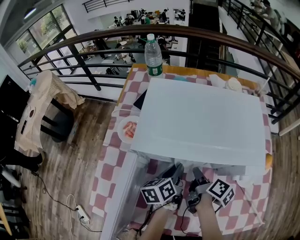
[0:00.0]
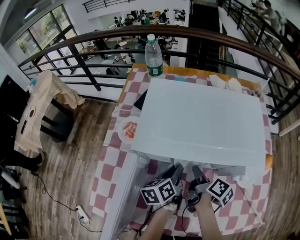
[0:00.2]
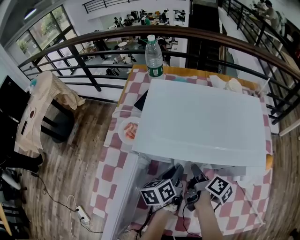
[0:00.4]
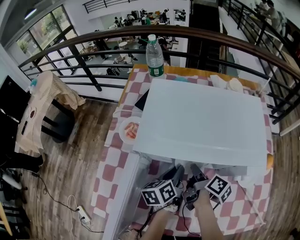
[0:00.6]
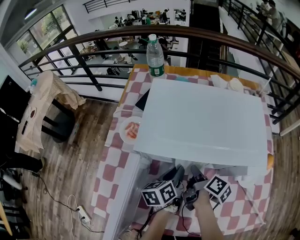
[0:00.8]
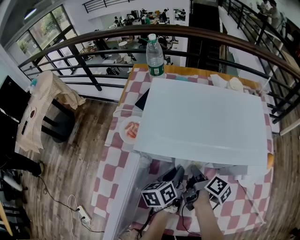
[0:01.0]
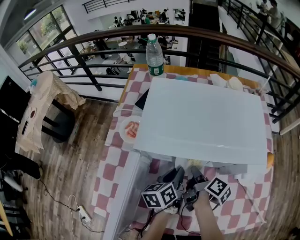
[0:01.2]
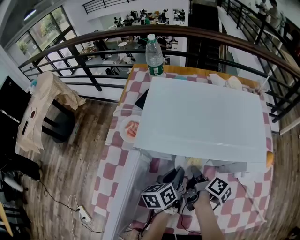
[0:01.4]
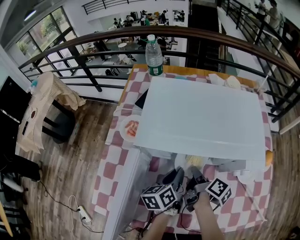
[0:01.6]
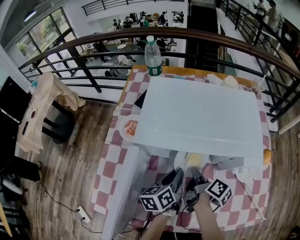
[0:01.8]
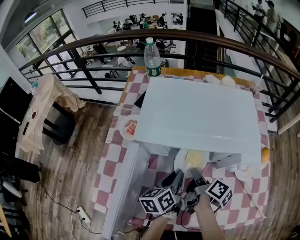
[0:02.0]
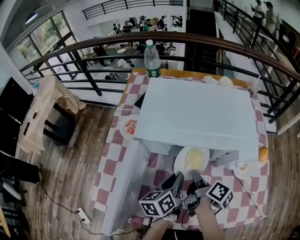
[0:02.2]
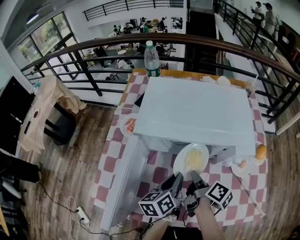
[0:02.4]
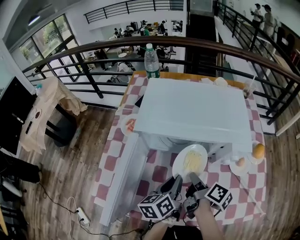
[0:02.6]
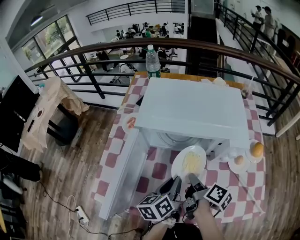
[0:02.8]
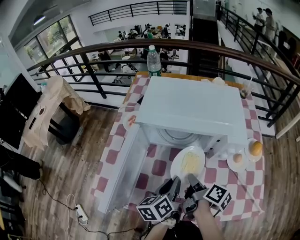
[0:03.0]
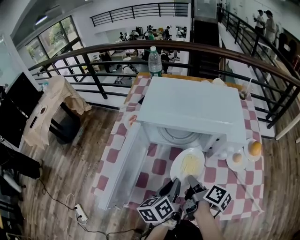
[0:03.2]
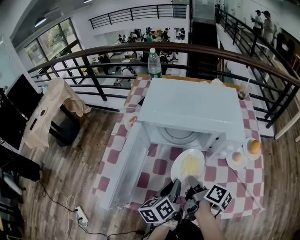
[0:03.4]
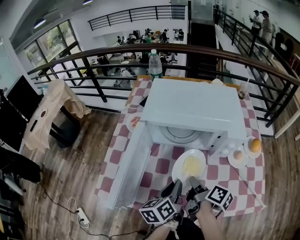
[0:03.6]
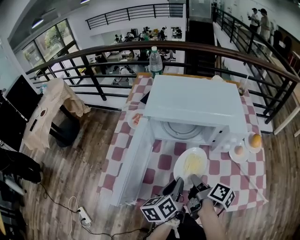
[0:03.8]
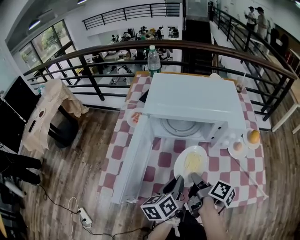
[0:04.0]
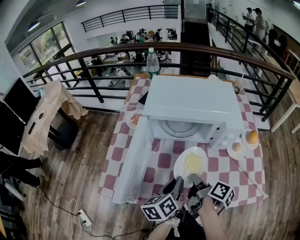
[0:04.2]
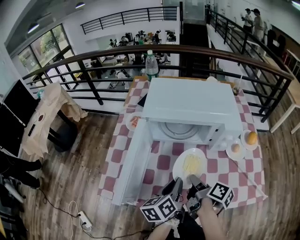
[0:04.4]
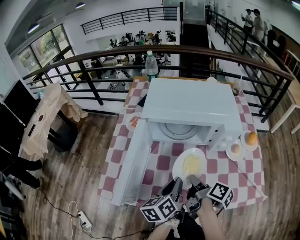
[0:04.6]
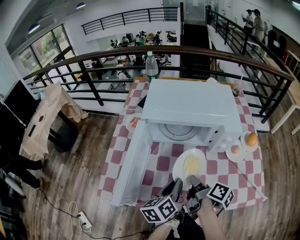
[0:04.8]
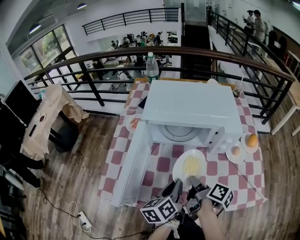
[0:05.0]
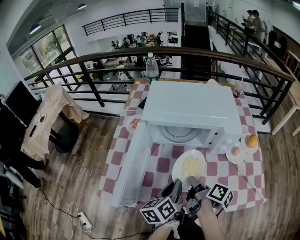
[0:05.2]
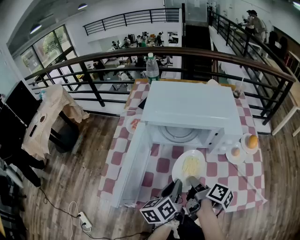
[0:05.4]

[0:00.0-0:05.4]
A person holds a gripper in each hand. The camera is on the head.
0:00.0 to 0:01.4: The right gripper opens, then closes once more.
0:01.4 to 0:02.8: The two grippers go about 10 cm backward and upward.
0:02.8 to 0:04.0: Both grippers move backward, some 5 cm.
0:04.0 to 0:05.4: Both grippers stay about where they are.

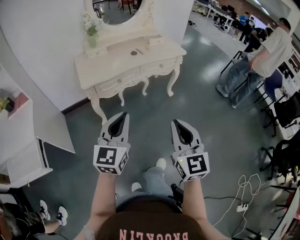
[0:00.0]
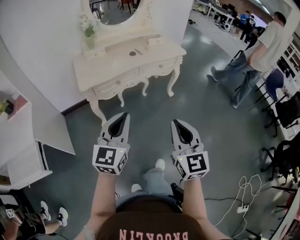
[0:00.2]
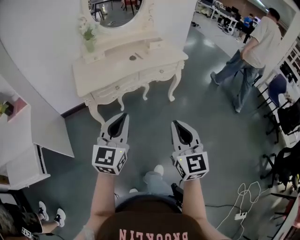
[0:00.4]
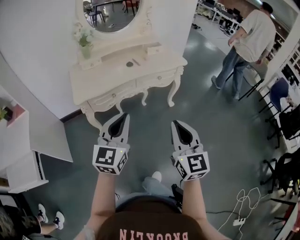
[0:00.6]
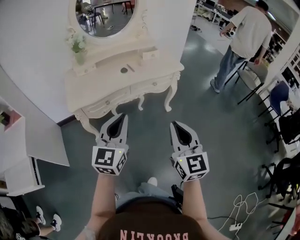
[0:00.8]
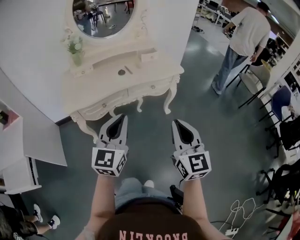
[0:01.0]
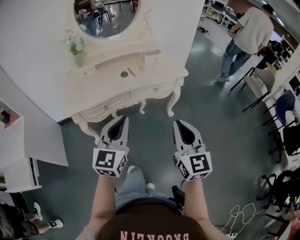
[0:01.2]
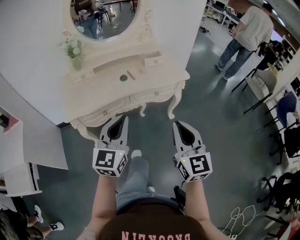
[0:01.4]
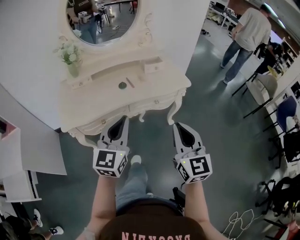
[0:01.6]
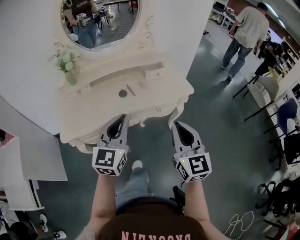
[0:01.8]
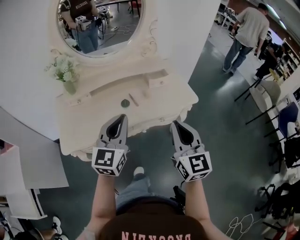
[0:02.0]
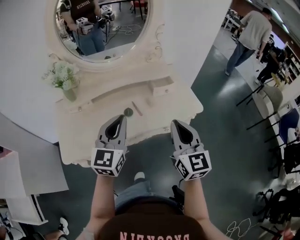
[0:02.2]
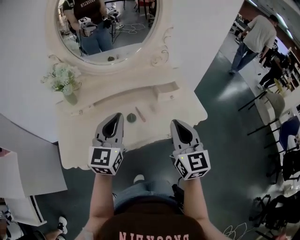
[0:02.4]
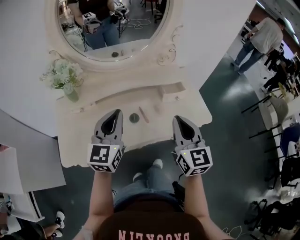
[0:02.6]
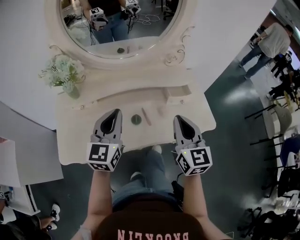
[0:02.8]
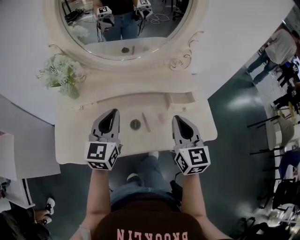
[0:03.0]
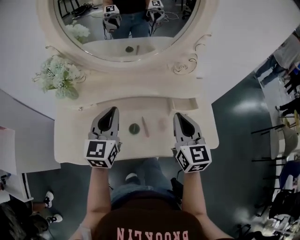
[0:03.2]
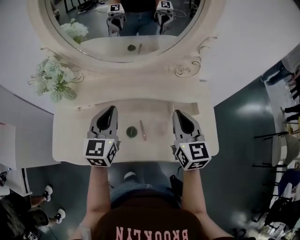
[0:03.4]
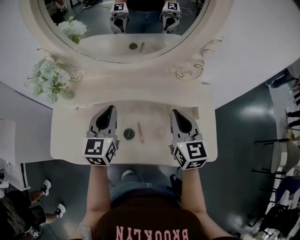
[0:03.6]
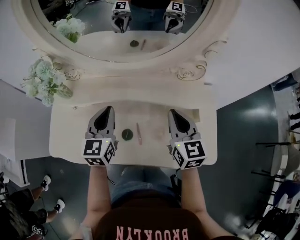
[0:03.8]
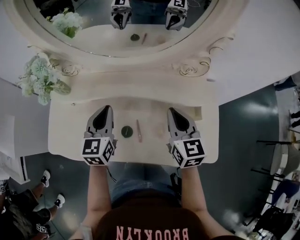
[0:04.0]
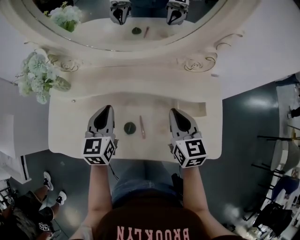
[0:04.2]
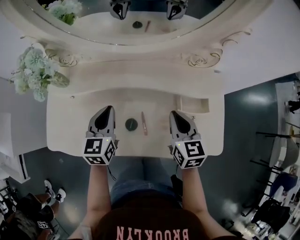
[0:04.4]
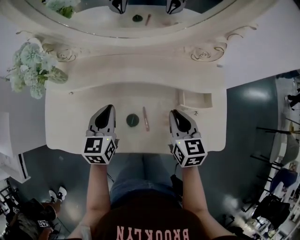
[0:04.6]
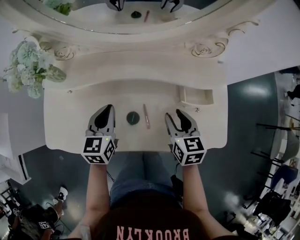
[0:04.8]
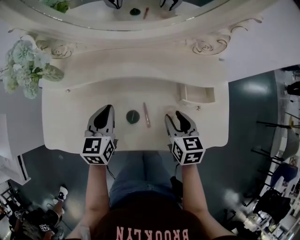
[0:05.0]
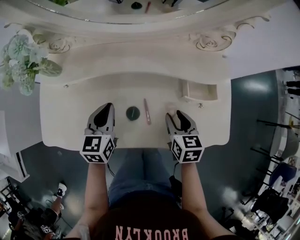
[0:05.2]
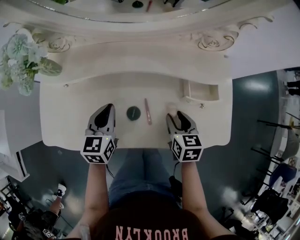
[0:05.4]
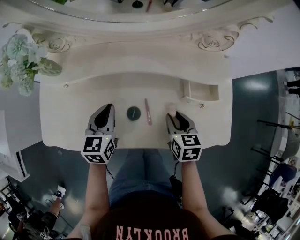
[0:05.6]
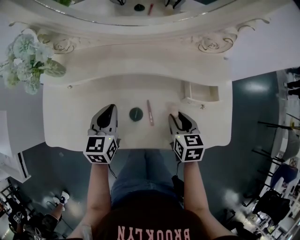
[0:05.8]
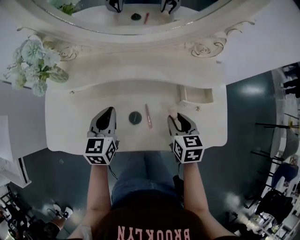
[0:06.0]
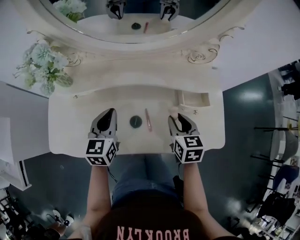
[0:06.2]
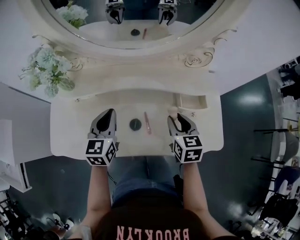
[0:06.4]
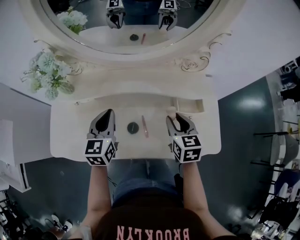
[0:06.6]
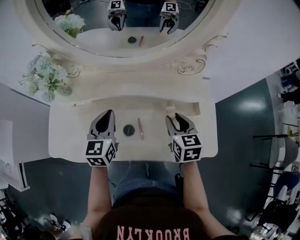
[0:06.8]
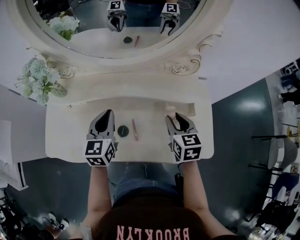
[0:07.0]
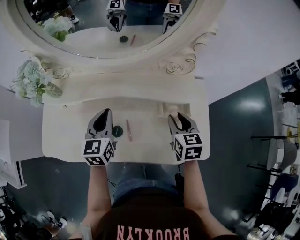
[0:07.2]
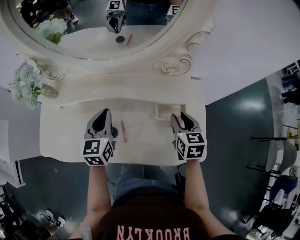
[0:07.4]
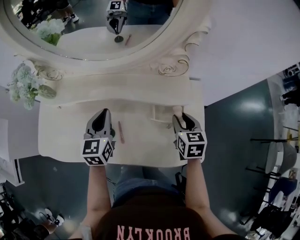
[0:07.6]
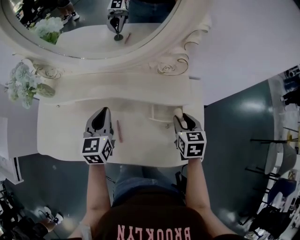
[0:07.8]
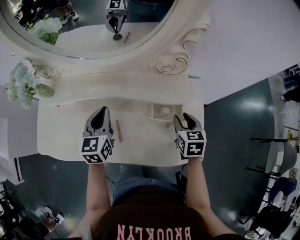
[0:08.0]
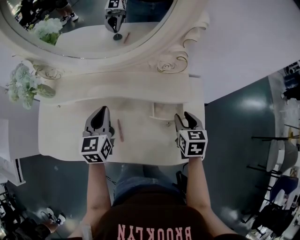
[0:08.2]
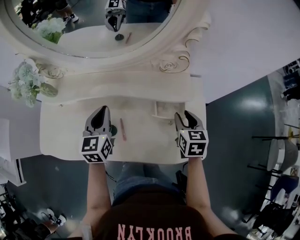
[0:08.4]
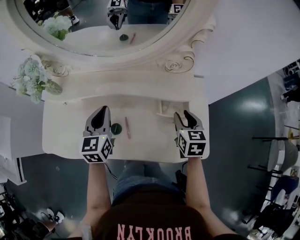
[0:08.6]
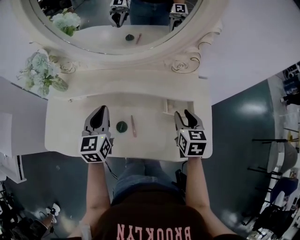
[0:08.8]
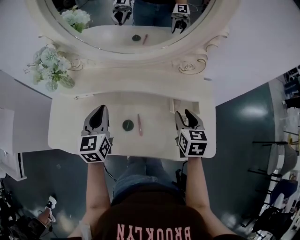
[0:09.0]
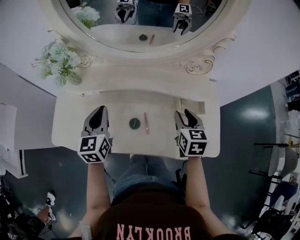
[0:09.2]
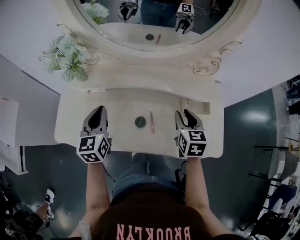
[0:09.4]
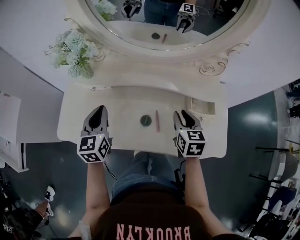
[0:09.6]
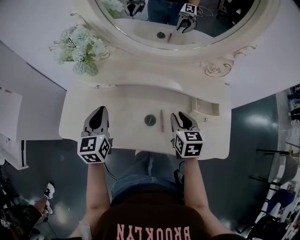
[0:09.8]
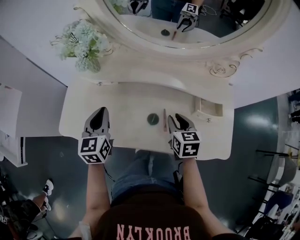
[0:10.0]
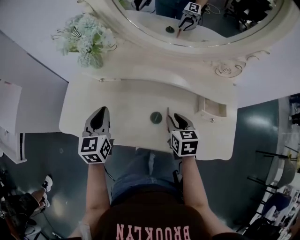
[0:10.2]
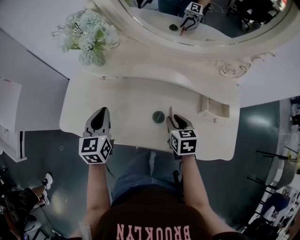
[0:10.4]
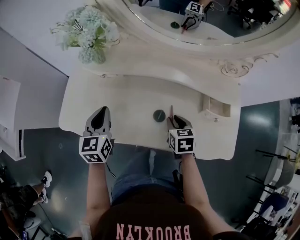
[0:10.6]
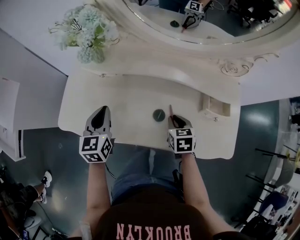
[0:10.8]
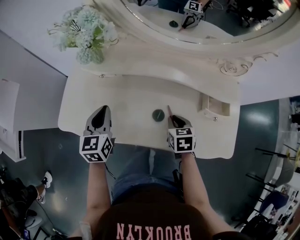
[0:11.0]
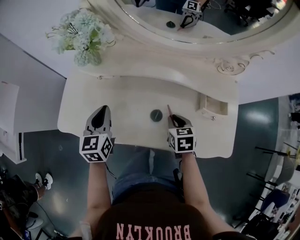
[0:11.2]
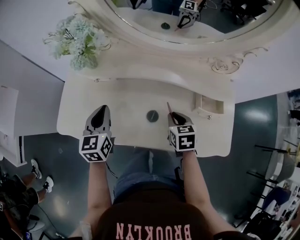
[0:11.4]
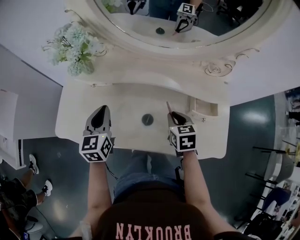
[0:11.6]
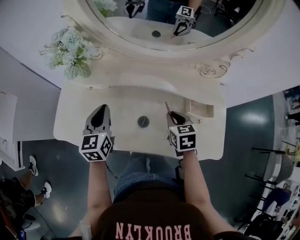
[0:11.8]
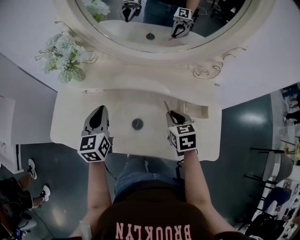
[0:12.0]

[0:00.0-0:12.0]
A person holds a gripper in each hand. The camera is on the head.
0:00.0 to 0:01.6: Both grippers move forward, some 35 cm.
0:01.6 to 0:03.0: The two grippers go some 40 cm forward.
0:03.0 to 0:04.4: Both grippers travel together downward and forward, some 15 cm. The left gripper turns by roughly 20 degrees; the right gripper swivels some 20 degrees.
0:04.4 to 0:06.0: The right gripper heads downward, covering approximately 5 cm, and opens.
0:06.0 to 0:07.6: The right gripper is displaced to the right and forward by some 15 cm. The left gripper shifts some 10 cm to the right and upward.
0:07.6 to 0:09.0: Both grippers travel together to the left, about 10 cm.
0:09.0 to 0:10.4: Both grippers travel together to the left and downward, approximately 20 cm.
0:10.4 to 0:12.0: The left gripper travels to the right by some 10 cm; the right gripper is displaced to the right and upward by some 10 cm.

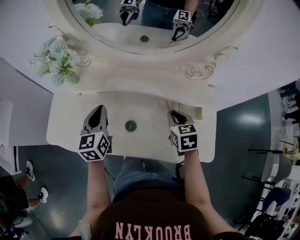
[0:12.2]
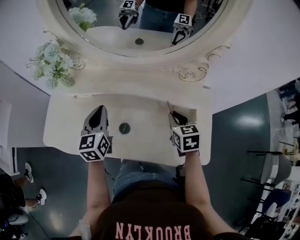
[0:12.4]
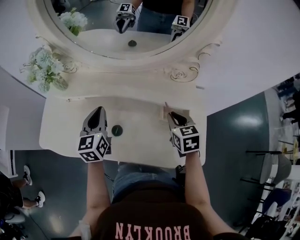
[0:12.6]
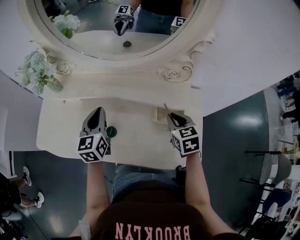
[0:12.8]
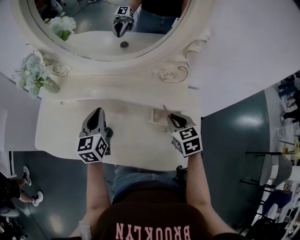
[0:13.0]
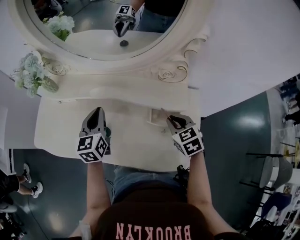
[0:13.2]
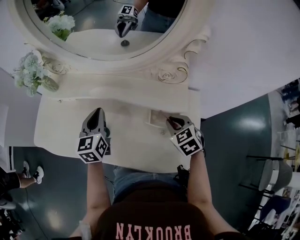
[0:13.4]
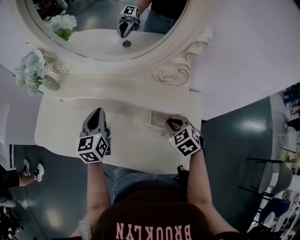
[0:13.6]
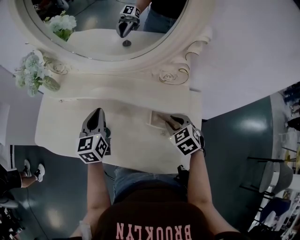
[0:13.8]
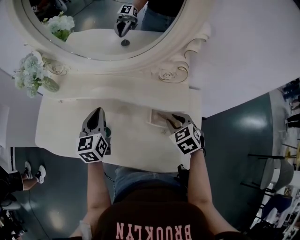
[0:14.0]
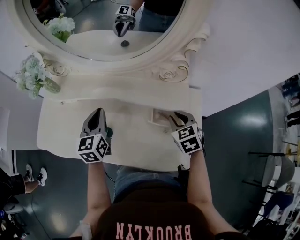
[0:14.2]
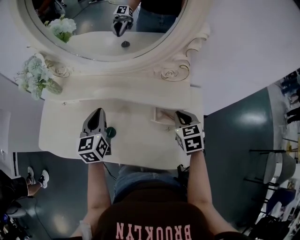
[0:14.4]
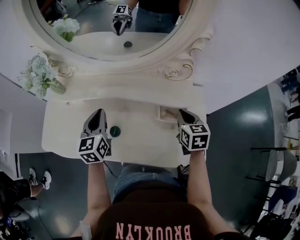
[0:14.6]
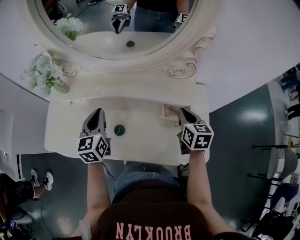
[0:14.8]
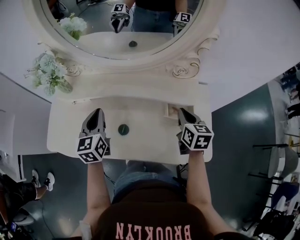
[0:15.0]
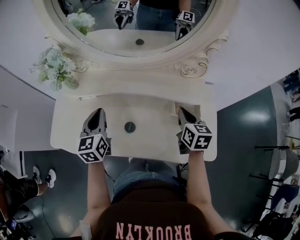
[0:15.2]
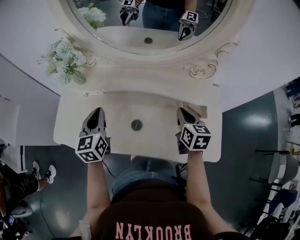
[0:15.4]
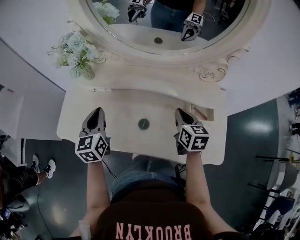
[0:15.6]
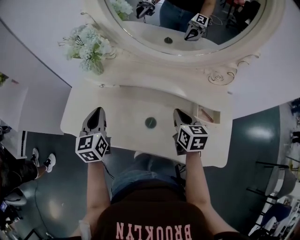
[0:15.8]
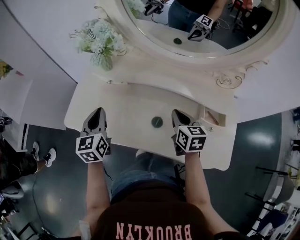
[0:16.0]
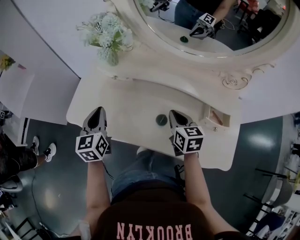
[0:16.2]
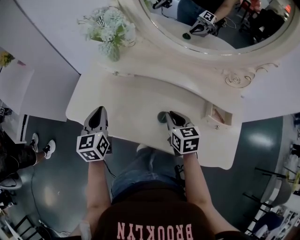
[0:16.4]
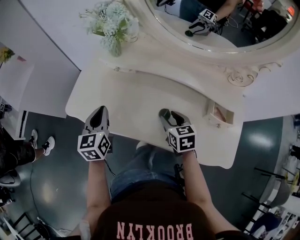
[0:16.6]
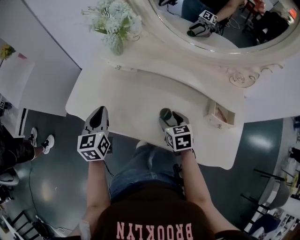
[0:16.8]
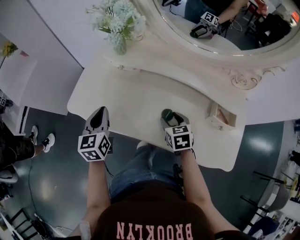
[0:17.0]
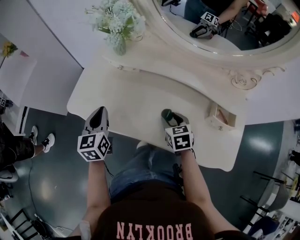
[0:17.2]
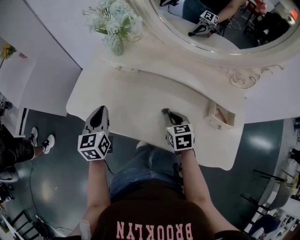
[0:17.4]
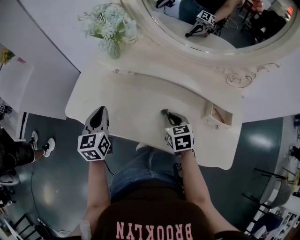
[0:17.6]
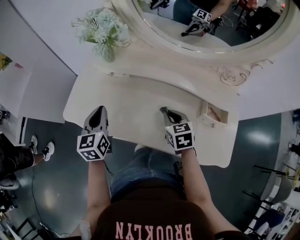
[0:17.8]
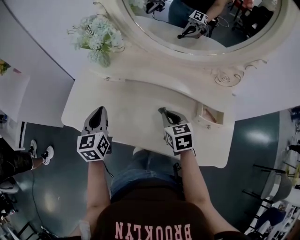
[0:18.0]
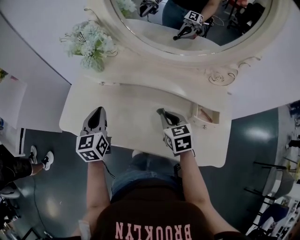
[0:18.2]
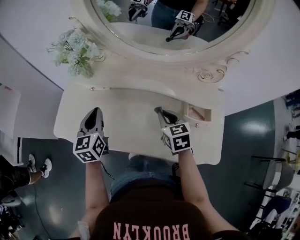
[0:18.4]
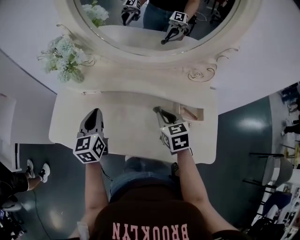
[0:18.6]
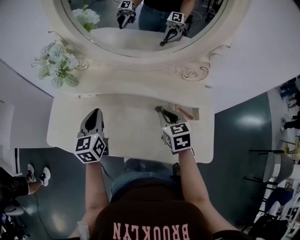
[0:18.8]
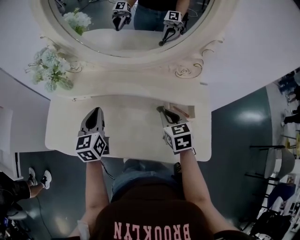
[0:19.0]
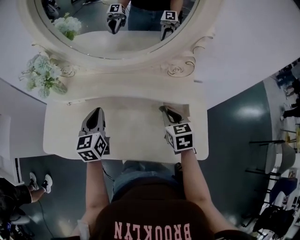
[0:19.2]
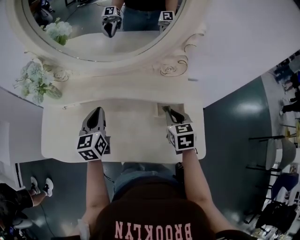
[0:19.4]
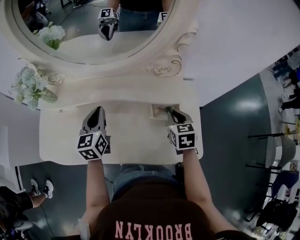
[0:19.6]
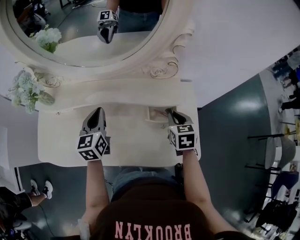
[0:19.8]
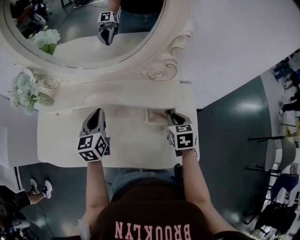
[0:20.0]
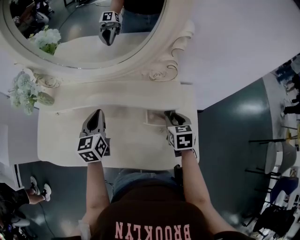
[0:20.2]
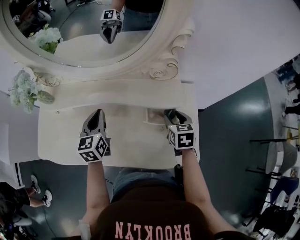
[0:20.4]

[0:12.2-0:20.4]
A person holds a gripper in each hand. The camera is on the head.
0:12.2 to 0:13.8: Both grippers travel together to the right, approximately 10 cm. The right gripper swivels approximately 30 degrees.
0:13.8 to 0:15.4: The left gripper heads to the left, covering some 15 cm. The right gripper moves to the left and upward, some 10 cm, rolls clockwise, seen from behind, by about 40 degrees, and closes its fingers.
0:15.4 to 0:17.2: Both grippers move to the left and downward, some 20 cm. The right gripper swivels about 30 degrees, and opens up.
0:17.2 to 0:18.8: The left gripper is displaced to the right by roughly 15 cm; the right gripper goes roughly 20 cm to the right and upward, and closes its fingers.
0:18.8 to 0:20.4: The grippers both shift to the right by about 15 cm. The right gripper opens.
